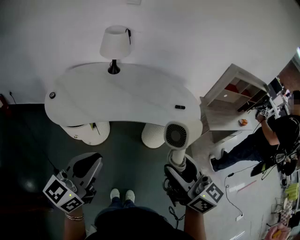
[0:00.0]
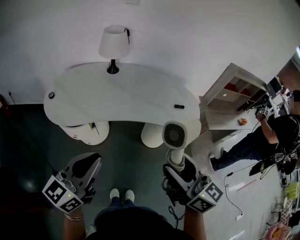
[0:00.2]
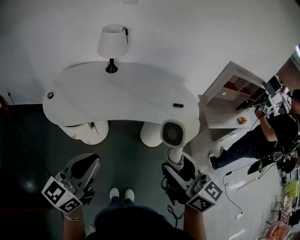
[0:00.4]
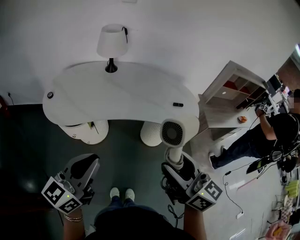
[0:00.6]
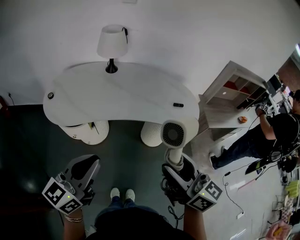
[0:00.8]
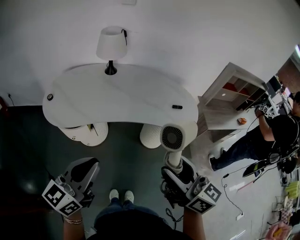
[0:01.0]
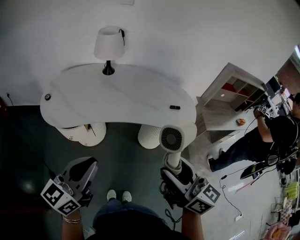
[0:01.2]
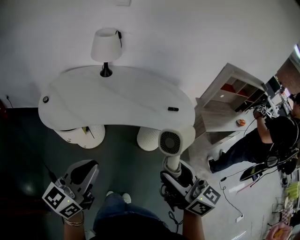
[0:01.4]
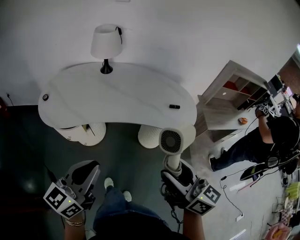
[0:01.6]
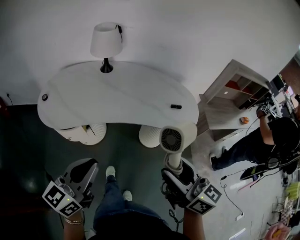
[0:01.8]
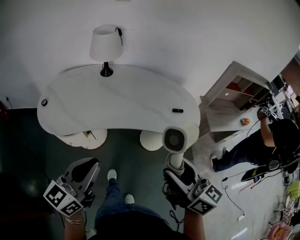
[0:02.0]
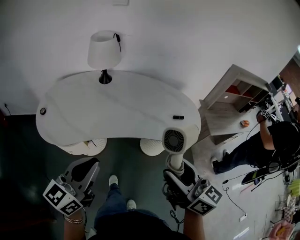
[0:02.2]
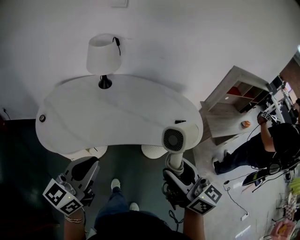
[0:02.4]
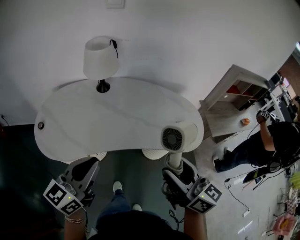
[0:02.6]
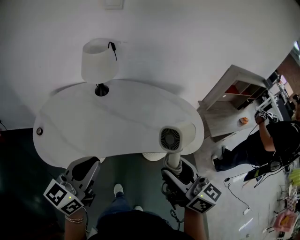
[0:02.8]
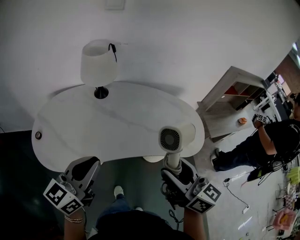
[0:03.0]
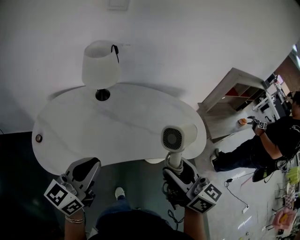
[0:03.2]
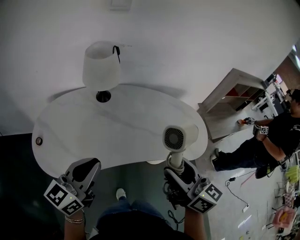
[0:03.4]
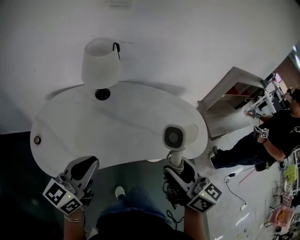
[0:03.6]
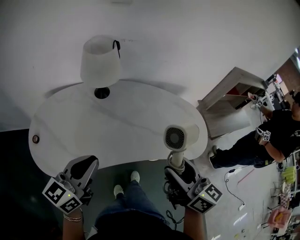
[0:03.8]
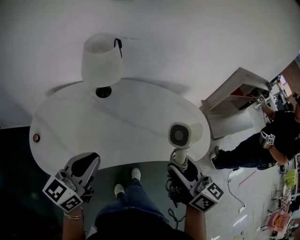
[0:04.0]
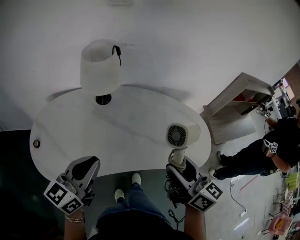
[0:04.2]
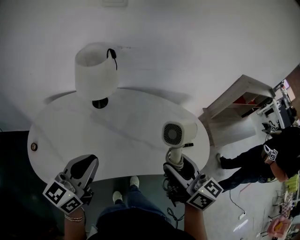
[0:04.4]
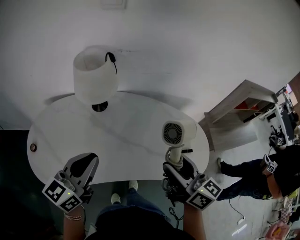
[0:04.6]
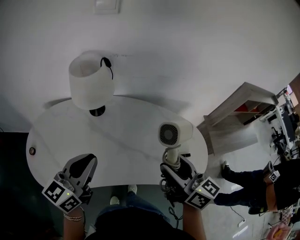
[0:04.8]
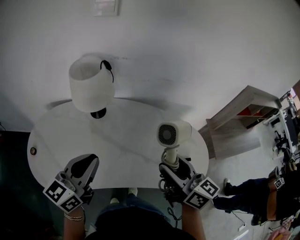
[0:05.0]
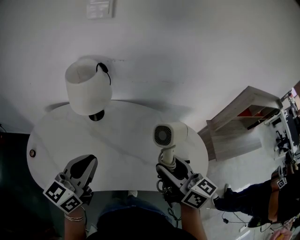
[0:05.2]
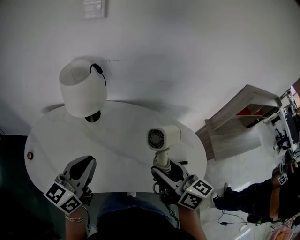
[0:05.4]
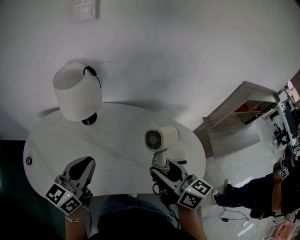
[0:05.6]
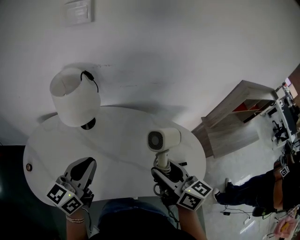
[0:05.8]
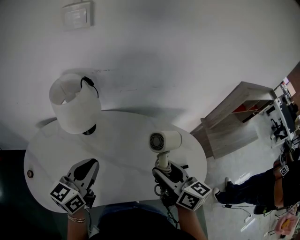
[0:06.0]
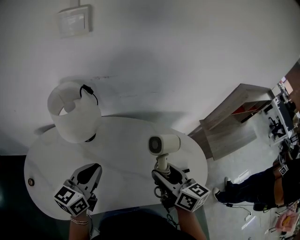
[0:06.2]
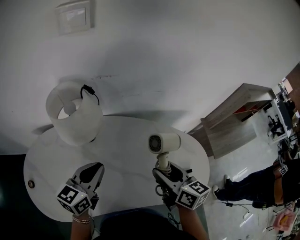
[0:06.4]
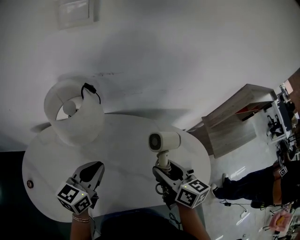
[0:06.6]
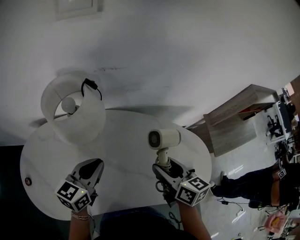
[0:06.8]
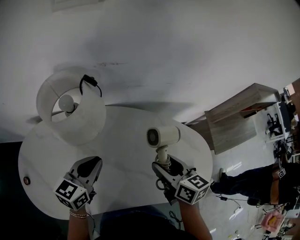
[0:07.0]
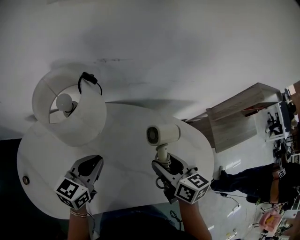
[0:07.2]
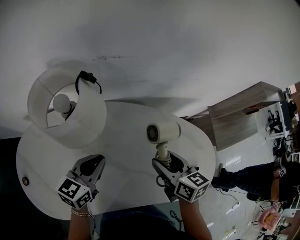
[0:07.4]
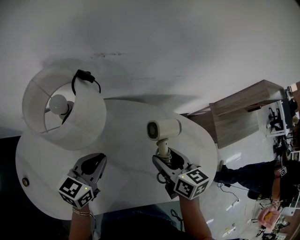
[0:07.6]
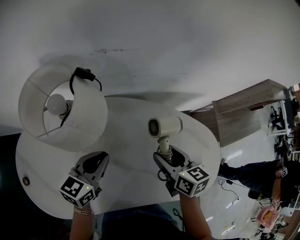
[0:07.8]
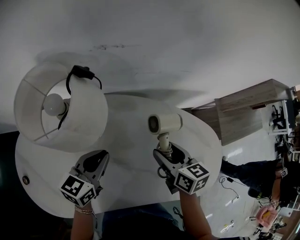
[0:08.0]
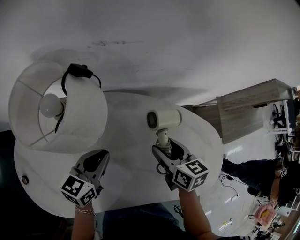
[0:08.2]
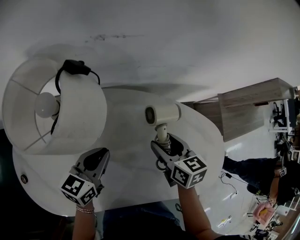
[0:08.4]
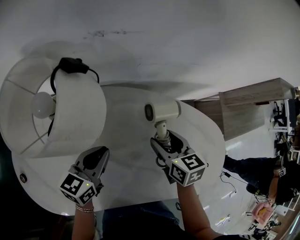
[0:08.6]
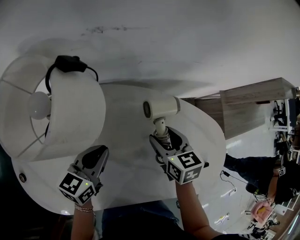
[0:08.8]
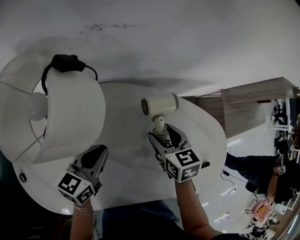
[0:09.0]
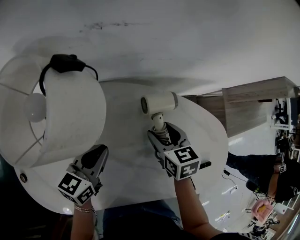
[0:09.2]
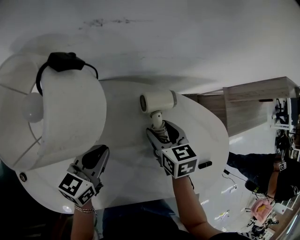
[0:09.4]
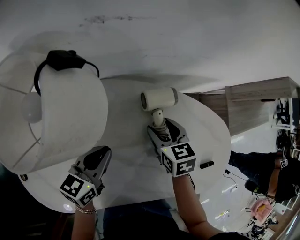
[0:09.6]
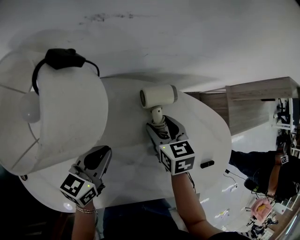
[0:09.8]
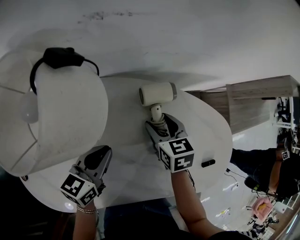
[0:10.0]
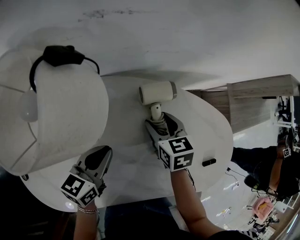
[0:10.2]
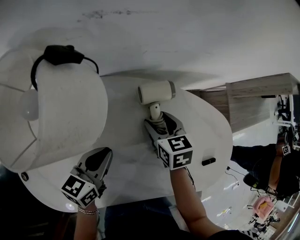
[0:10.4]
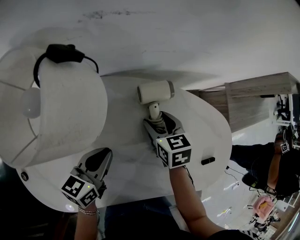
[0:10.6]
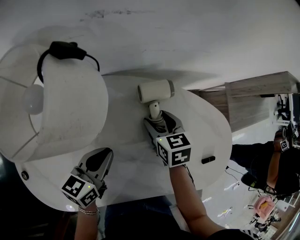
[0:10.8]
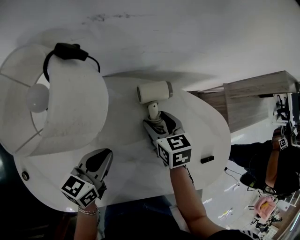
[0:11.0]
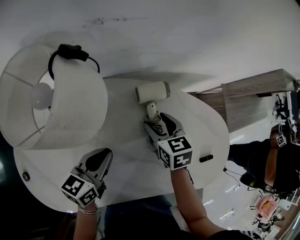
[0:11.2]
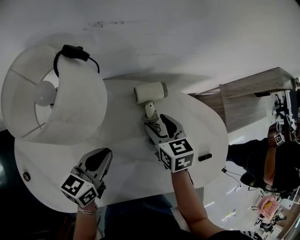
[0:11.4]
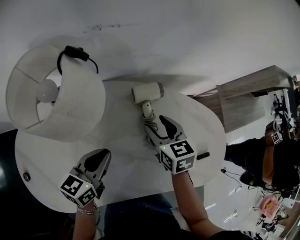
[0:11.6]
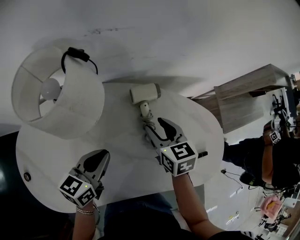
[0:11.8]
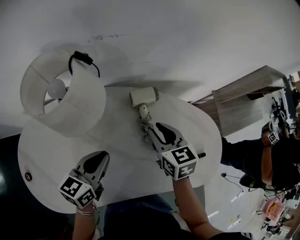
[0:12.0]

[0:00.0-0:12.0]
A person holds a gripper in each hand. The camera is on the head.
0:00.0 to 0:01.6: The right gripper ends up approximately 5 cm from where it was.
0:01.6 to 0:03.0: The right gripper goes approximately 20 cm forward and to the left; the left gripper shifts approximately 25 cm forward.
0:03.0 to 0:04.4: Both grippers move forward, about 15 cm.
0:04.4 to 0:06.0: The right gripper is displaced forward and downward by roughly 15 cm, while the left gripper shifts about 15 cm forward and to the right.
0:06.0 to 0:07.6: The left gripper goes roughly 15 cm downward and forward, while the right gripper shifts about 15 cm forward and downward, and swivels about 20 degrees.
0:07.6 to 0:09.0: The right gripper heads downward and forward, covering approximately 10 cm, while the left gripper moves downward, about 5 cm.
0:09.0 to 0:10.4: The grippers stay close to where they were, moving slightly.
0:10.4 to 0:12.0: The left gripper is displaced upward by approximately 5 cm, while the right gripper goes roughly 10 cm upward and backward, and closes up.

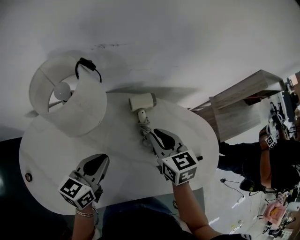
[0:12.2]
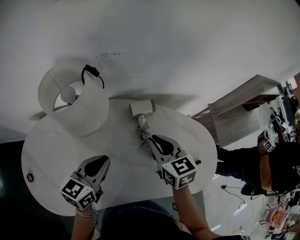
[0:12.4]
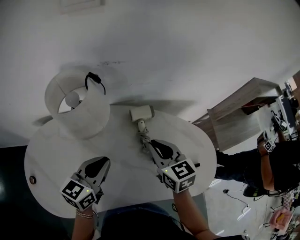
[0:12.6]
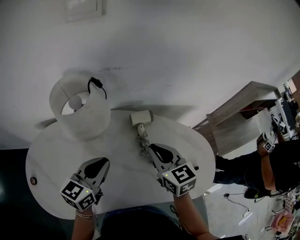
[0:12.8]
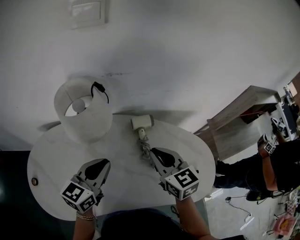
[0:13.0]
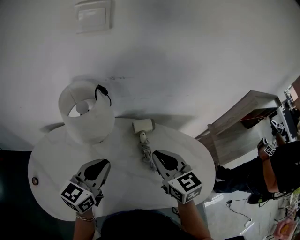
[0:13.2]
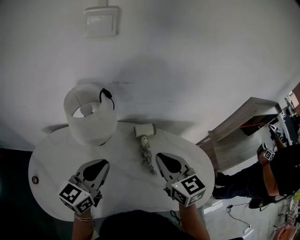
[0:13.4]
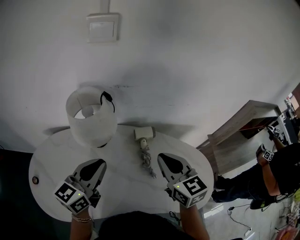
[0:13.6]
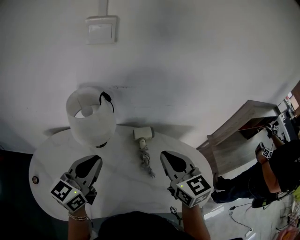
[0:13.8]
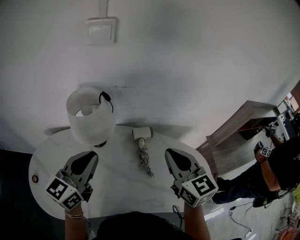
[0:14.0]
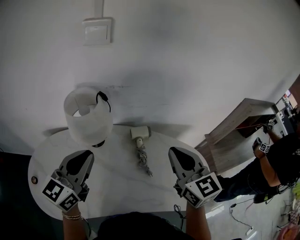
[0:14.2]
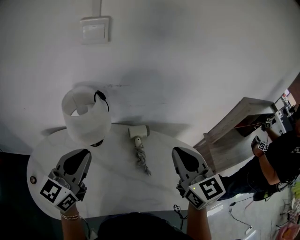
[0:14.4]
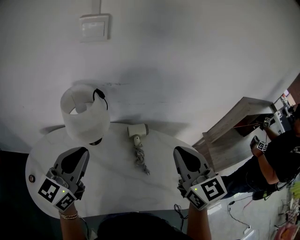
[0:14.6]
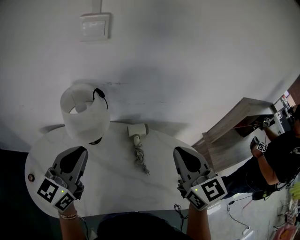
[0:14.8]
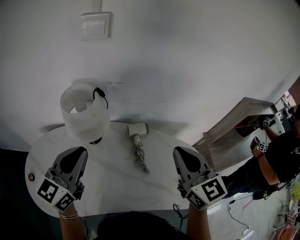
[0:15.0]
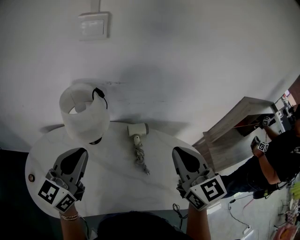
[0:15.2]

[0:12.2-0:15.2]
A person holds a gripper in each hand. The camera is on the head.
0:12.2 to 0:13.8: Both grippers travel together upward, some 15 cm. The right gripper changes its angle by some 20 degrees, while the left gripper rotates approximately 20 degrees.
0:13.8 to 0:15.2: The right gripper is displaced upward by roughly 5 cm.

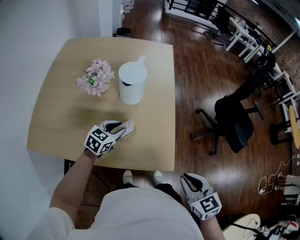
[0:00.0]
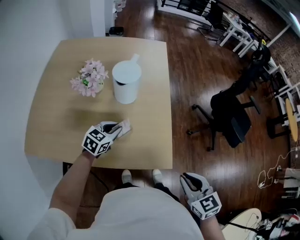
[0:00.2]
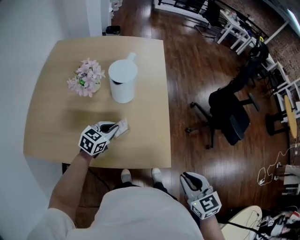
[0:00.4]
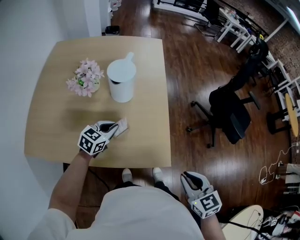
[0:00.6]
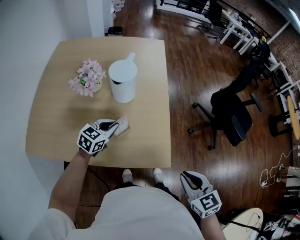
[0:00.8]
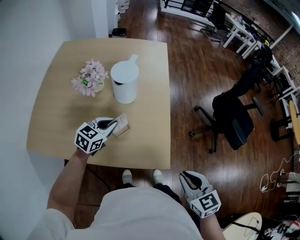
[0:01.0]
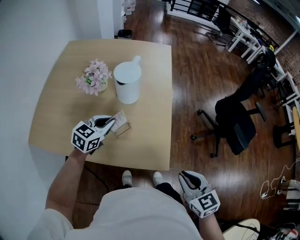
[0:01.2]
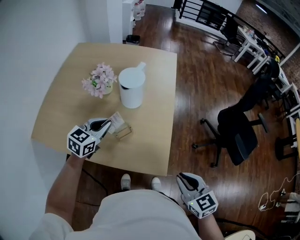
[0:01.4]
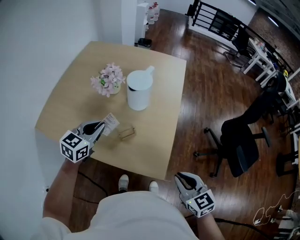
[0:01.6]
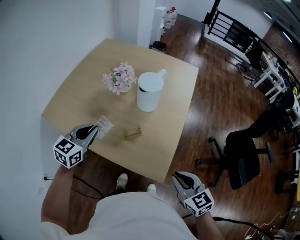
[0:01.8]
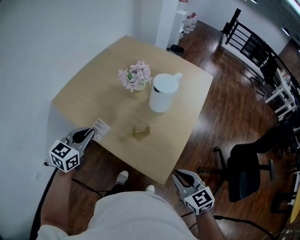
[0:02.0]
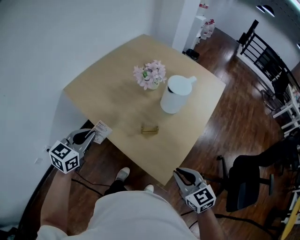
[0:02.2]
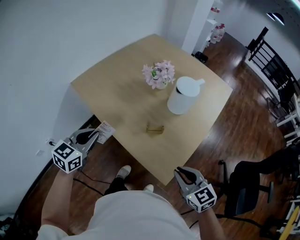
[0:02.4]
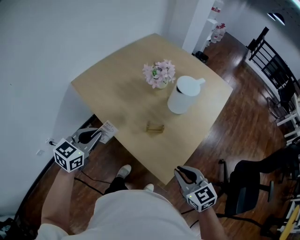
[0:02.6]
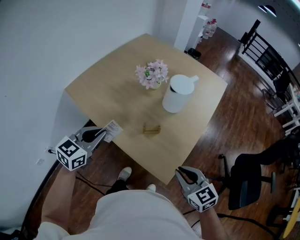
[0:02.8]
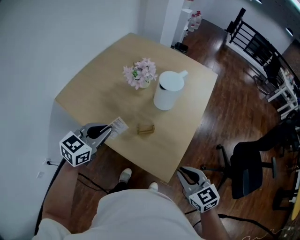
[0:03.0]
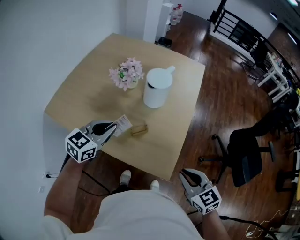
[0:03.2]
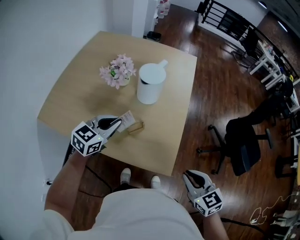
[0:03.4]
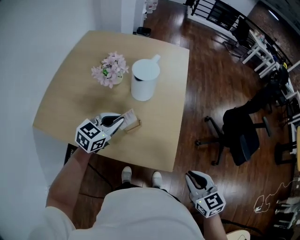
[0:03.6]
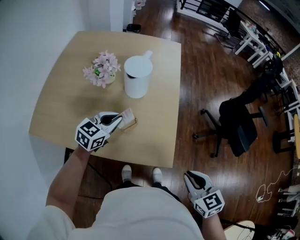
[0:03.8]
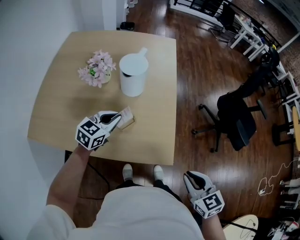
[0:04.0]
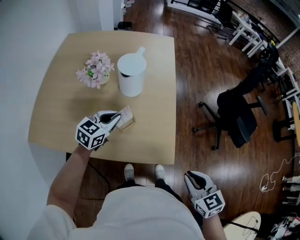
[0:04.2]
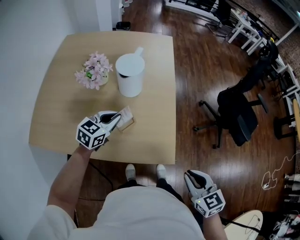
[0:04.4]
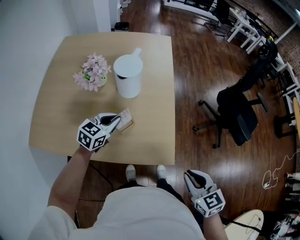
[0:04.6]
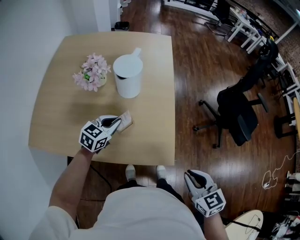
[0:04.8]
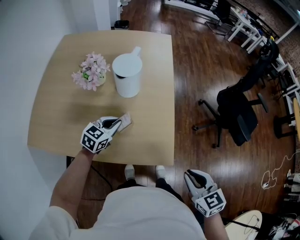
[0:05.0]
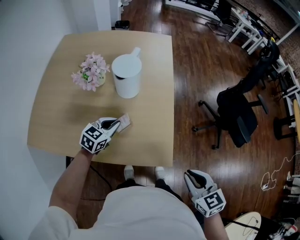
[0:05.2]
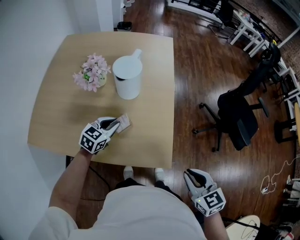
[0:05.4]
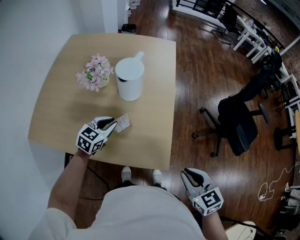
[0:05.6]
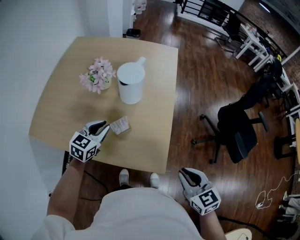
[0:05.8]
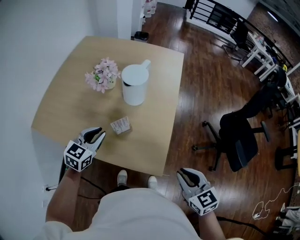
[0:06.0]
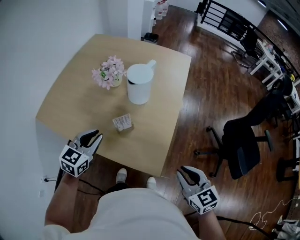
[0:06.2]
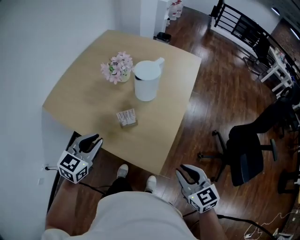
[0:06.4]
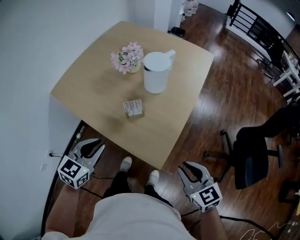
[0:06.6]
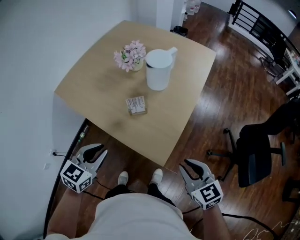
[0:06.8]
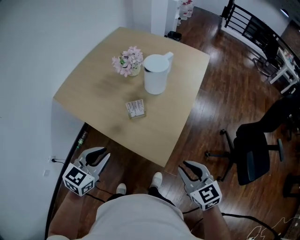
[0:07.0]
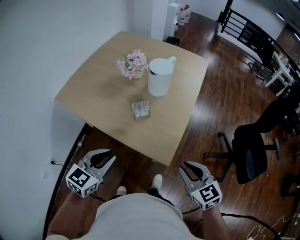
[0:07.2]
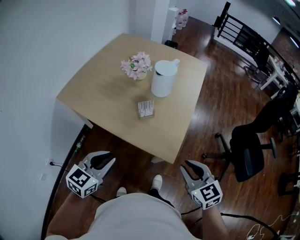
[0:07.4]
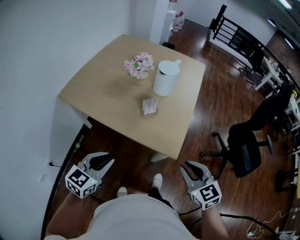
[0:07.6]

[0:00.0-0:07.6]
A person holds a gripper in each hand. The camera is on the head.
0:00.0 to 0:01.6: The left gripper moves upward and to the left, roughly 15 cm, changes its angle by approximately 20 degrees, and closes up. Meanwhile the right gripper moves forward, about 5 cm.
0:03.0 to 0:04.6: The right gripper changes place by approximately 10 cm, and swivels approximately 30 degrees; the left gripper moves roughly 20 cm, and turns by approximately 30 degrees.
0:04.6 to 0:06.0: The right gripper is displaced forward by approximately 5 cm; the left gripper heads backward, covering roughly 5 cm, and turns by approximately 20 degrees.
0:06.0 to 0:07.6: The right gripper shifts approximately 15 cm backward and to the left. The left gripper goes some 30 cm backward.

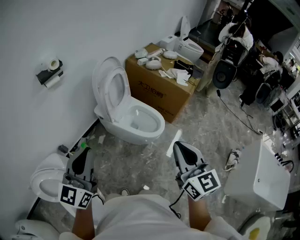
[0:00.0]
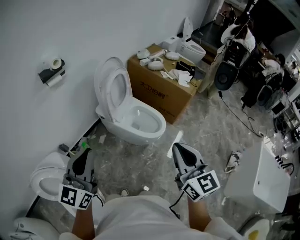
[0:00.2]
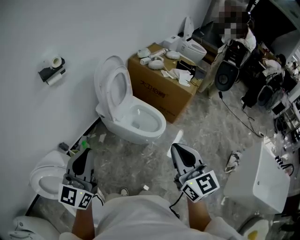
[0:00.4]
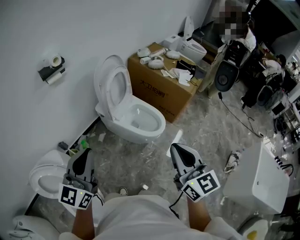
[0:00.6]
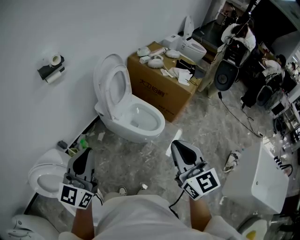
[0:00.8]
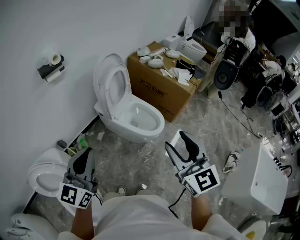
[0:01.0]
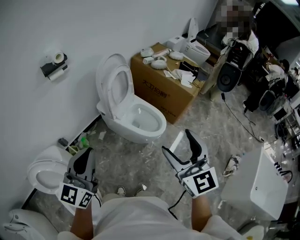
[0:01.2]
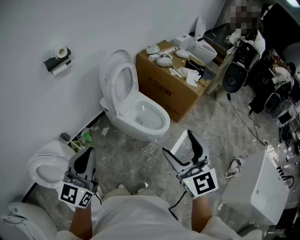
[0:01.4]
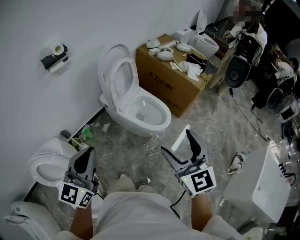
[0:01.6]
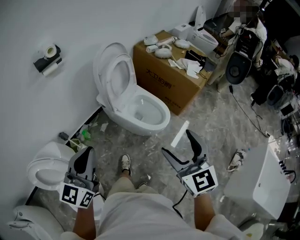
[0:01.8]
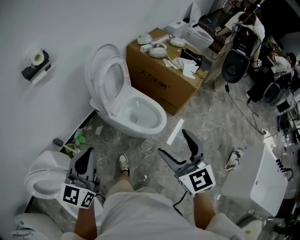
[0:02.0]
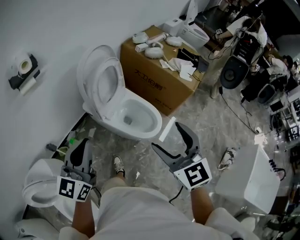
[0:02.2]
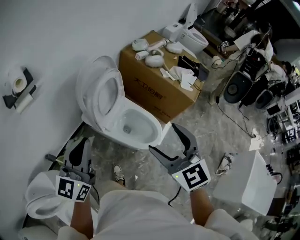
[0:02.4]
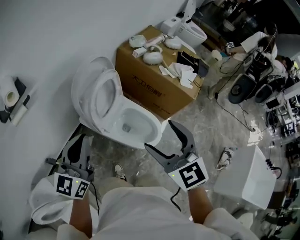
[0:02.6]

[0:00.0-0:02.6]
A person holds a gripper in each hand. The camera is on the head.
0:00.0 to 0:01.2: The right gripper opens its fingers.
0:01.2 to 0:02.6: Both grippers move forward, about 35 cm.
